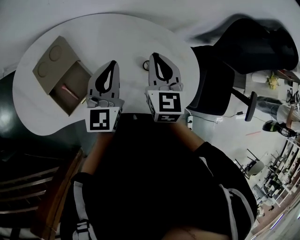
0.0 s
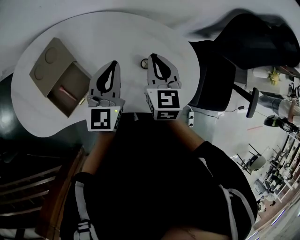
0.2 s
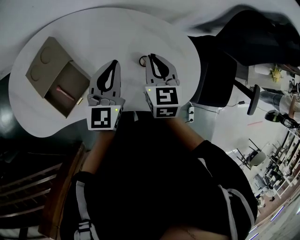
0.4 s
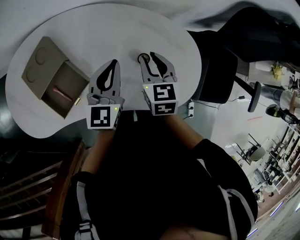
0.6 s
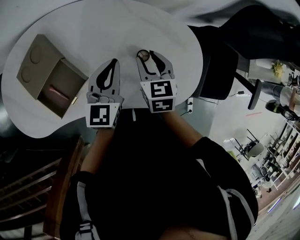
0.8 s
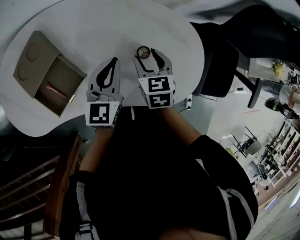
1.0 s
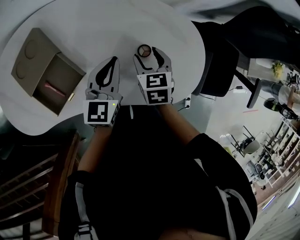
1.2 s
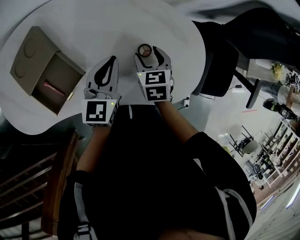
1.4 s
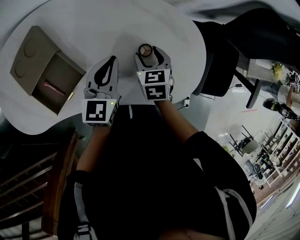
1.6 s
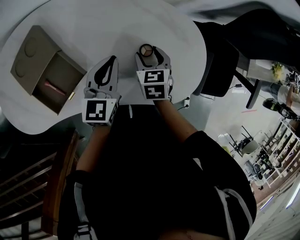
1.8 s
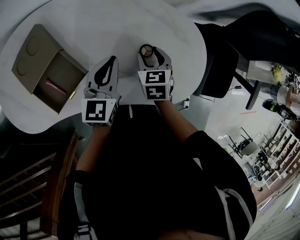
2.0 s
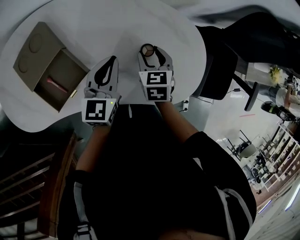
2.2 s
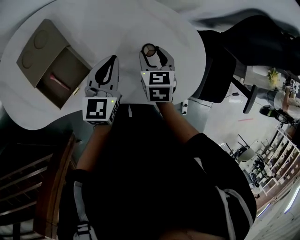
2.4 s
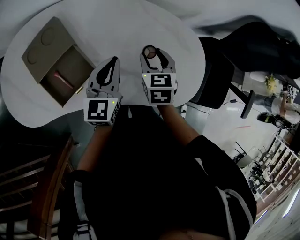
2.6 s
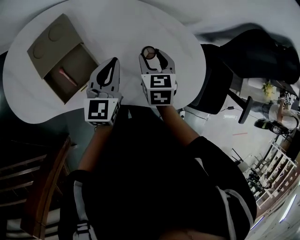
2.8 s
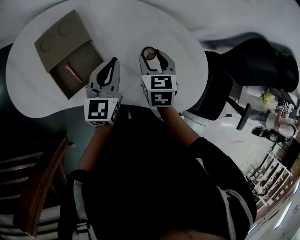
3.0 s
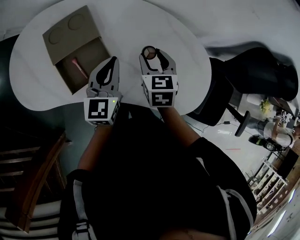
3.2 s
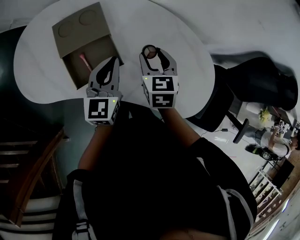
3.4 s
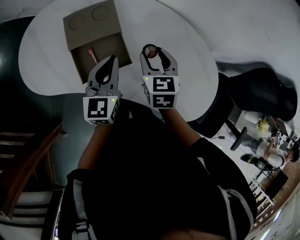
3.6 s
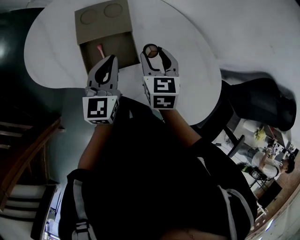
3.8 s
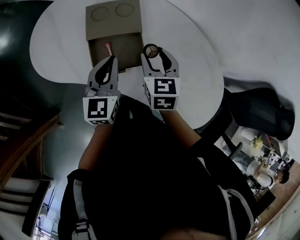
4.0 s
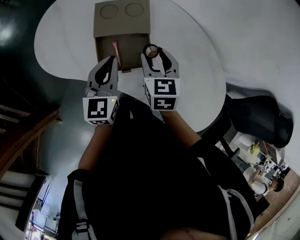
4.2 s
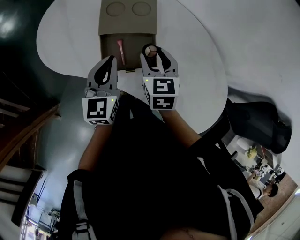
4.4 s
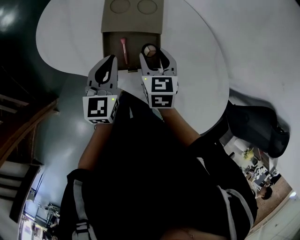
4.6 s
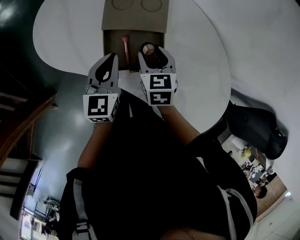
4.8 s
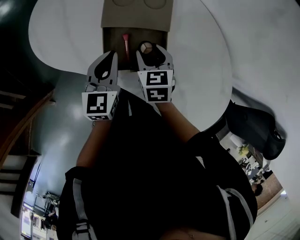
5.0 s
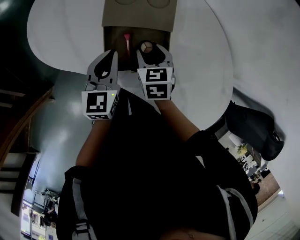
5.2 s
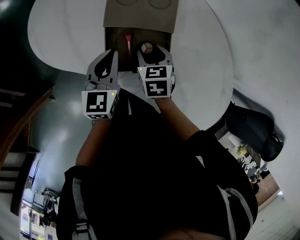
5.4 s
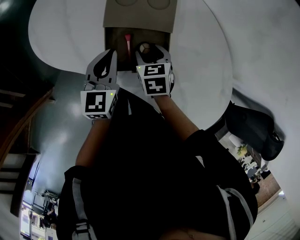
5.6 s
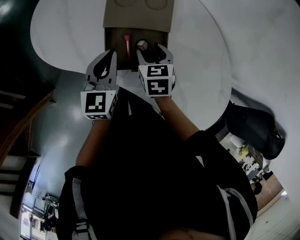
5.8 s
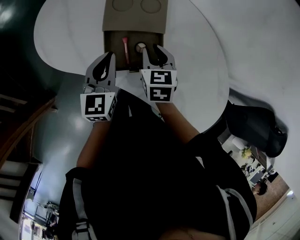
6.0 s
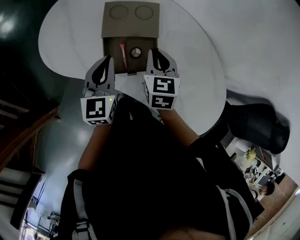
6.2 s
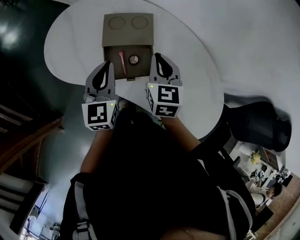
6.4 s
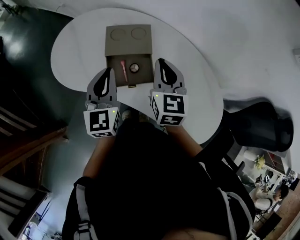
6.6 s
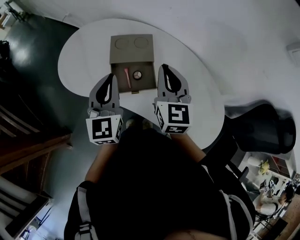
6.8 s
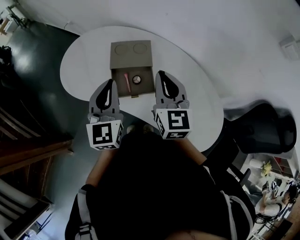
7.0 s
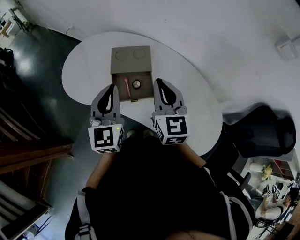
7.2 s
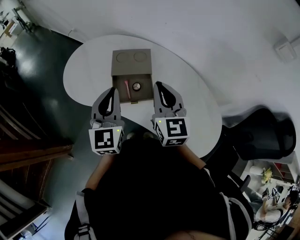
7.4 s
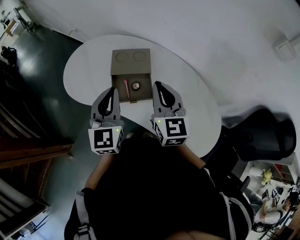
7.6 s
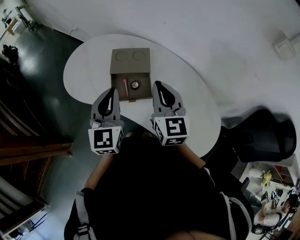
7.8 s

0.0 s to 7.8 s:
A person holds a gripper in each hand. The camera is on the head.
0.0 to 1.6 s: The right gripper moves downward, roughly 20 cm, tilts its fingers approximately 30 degrees downward, and opens. Meanwhile the left gripper heads downward, covering roughly 15 cm.
1.6 to 3.2 s: The left gripper moves to the left and upward, roughly 15 cm, and changes its angle by approximately 20 degrees. Meanwhile the right gripper heads upward and to the left, covering approximately 15 cm.
3.2 to 4.6 s: The left gripper ends up about 20 cm from where it was, and changes its angle by some 30 degrees, while the right gripper shifts by some 20 cm, and rotates roughly 30 degrees.
4.6 to 6.2 s: The left gripper reaches about 5 cm downward, then returns. The right gripper reaches approximately 10 cm downward, then returns, and closes its fingers.
6.2 to 7.8 s: Both grippers move upward and backward, some 20 cm. The right gripper swivels approximately 30 degrees.

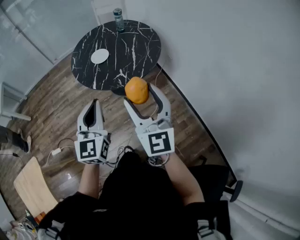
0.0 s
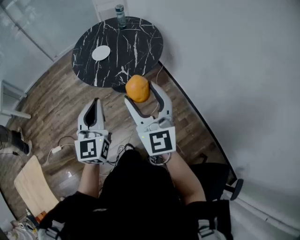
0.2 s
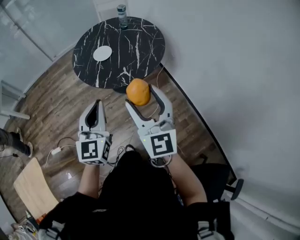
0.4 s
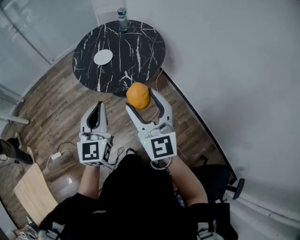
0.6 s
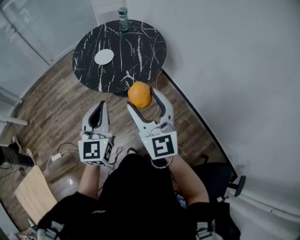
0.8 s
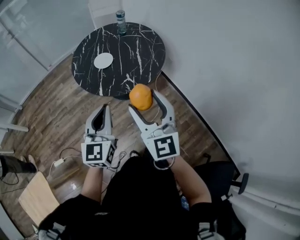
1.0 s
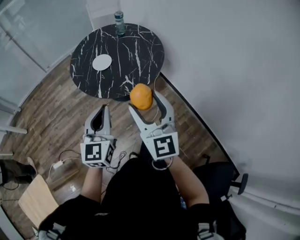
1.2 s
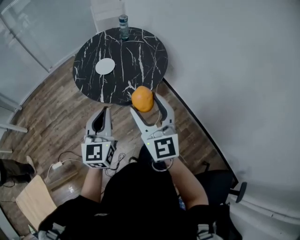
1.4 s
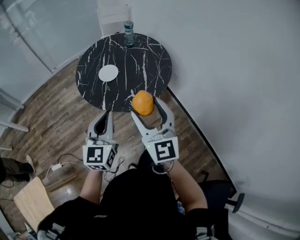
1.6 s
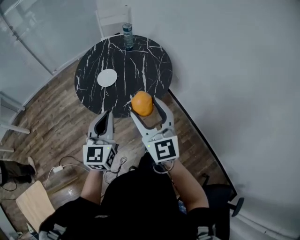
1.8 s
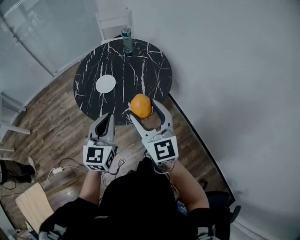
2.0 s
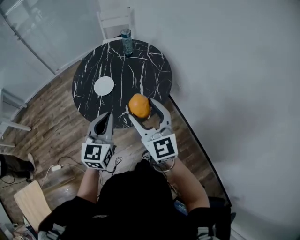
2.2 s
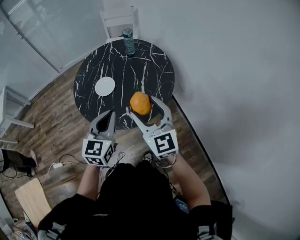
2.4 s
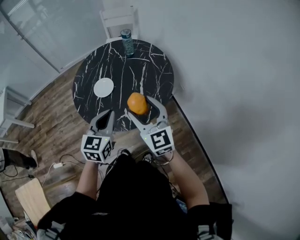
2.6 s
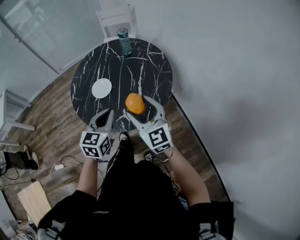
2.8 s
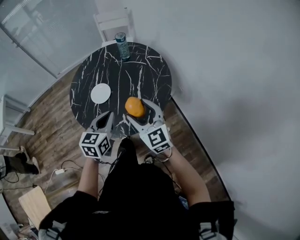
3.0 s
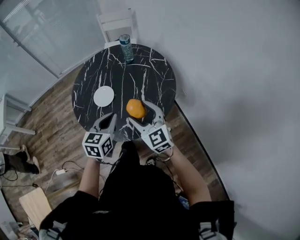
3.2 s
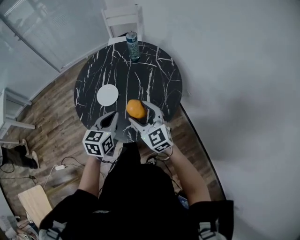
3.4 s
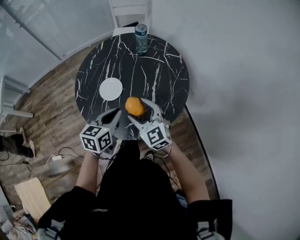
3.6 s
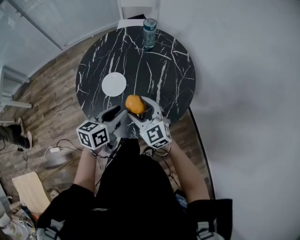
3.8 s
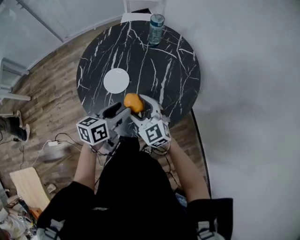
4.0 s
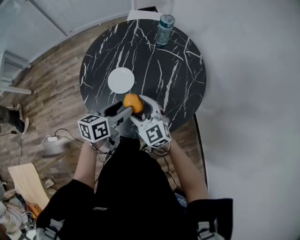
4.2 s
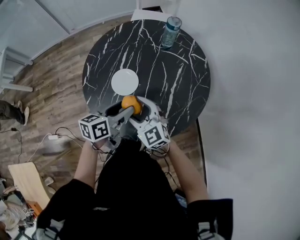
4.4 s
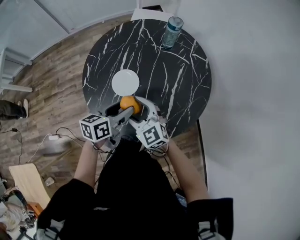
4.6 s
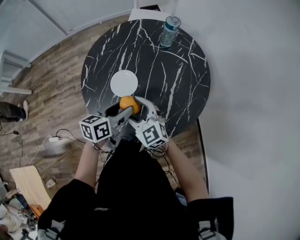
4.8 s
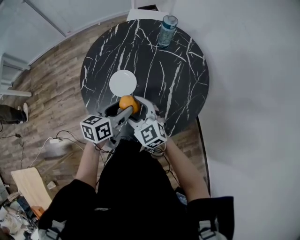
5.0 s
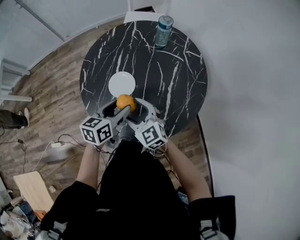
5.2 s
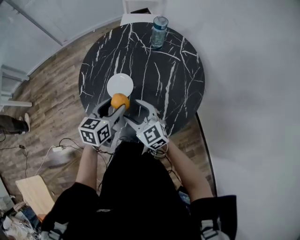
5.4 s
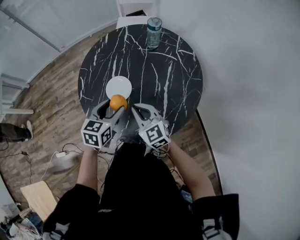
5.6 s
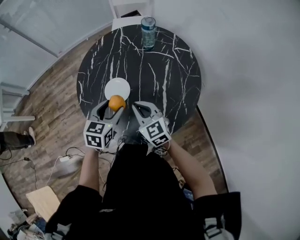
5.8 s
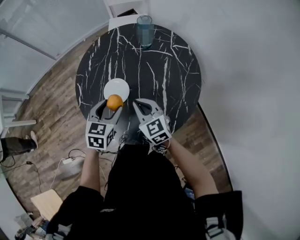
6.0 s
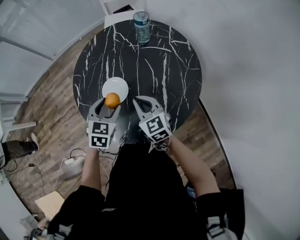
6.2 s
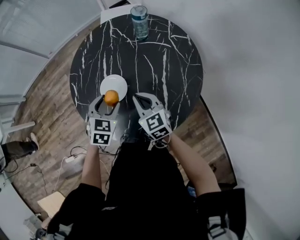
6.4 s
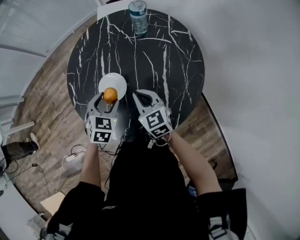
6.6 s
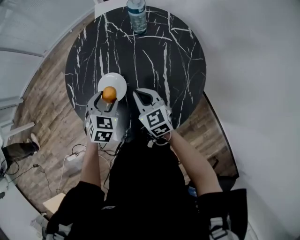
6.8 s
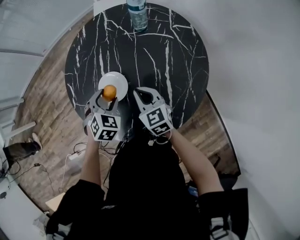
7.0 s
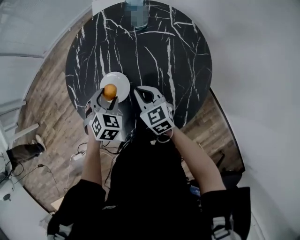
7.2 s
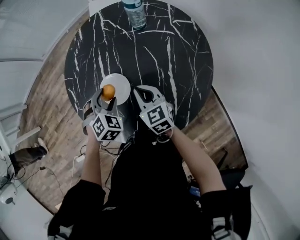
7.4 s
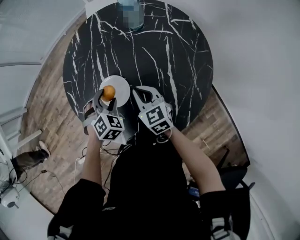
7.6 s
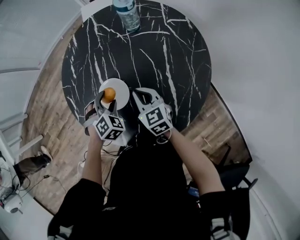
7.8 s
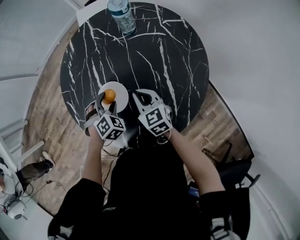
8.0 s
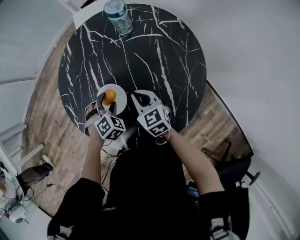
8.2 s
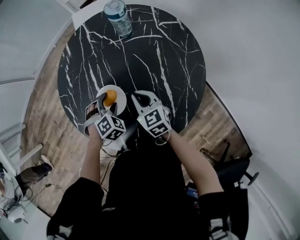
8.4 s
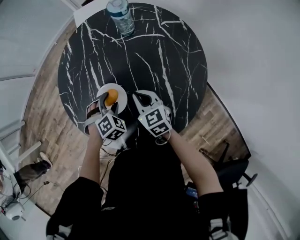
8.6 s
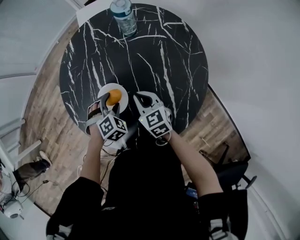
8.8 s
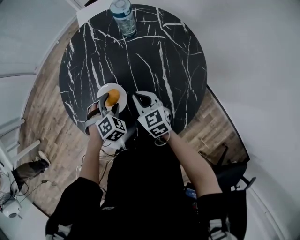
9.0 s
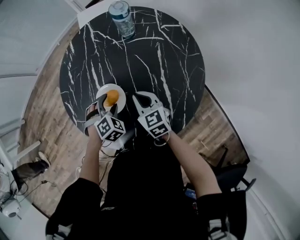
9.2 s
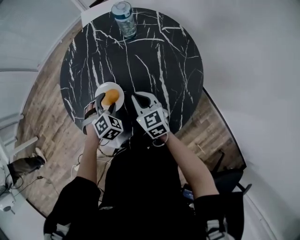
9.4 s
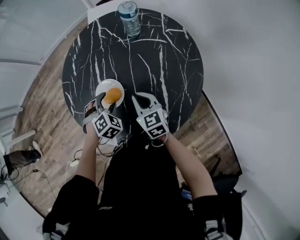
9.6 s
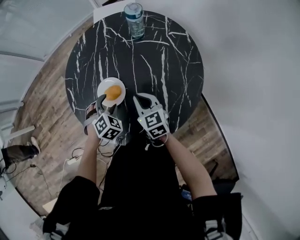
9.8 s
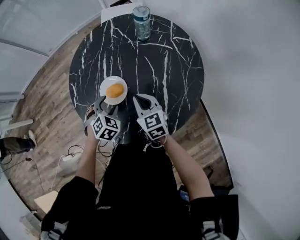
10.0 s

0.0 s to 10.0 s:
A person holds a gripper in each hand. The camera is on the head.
0.0 to 1.4 s: Both grippers travel together forward and to the left, about 10 cm.
1.4 to 2.8 s: The left gripper heads forward and to the right, covering roughly 25 cm. Meanwhile the right gripper goes approximately 25 cm forward, downward and to the right, and changes its angle by roughly 20 degrees.
2.8 to 4.2 s: The right gripper is displaced to the left, downward and forward by roughly 25 cm, and changes its angle by roughly 20 degrees. The left gripper travels forward, downward and to the left by some 20 cm, swivels roughly 40 degrees, and opens up.
4.2 to 5.8 s: The left gripper moves roughly 5 cm, and swivels roughly 40 degrees; the right gripper closes up.
5.8 to 7.2 s: Both grippers move downward and forward, some 10 cm. The left gripper turns by about 40 degrees.
7.2 to 8.6 s: The left gripper shifts about 5 cm downward, and rotates approximately 20 degrees.
8.6 to 10.0 s: The right gripper shifts about 5 cm upward. Meanwhile the left gripper goes some 10 cm backward and upward, and changes its angle by some 20 degrees.

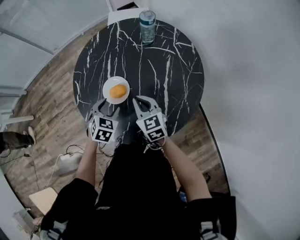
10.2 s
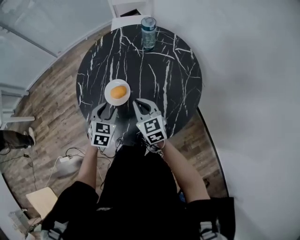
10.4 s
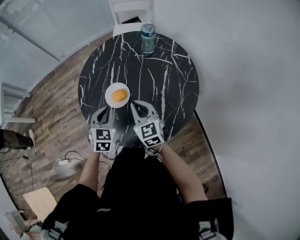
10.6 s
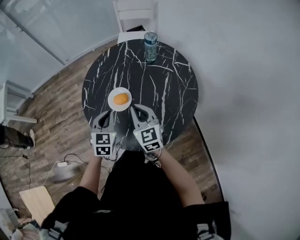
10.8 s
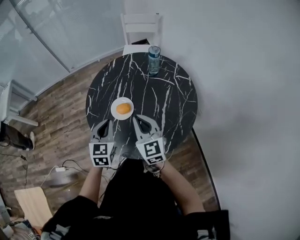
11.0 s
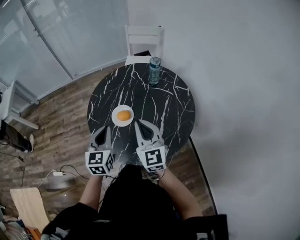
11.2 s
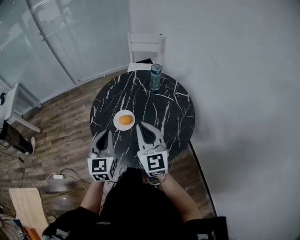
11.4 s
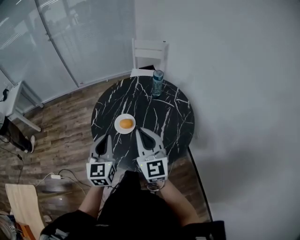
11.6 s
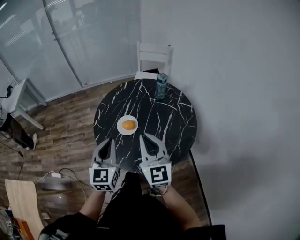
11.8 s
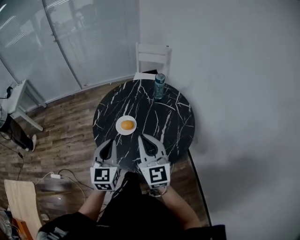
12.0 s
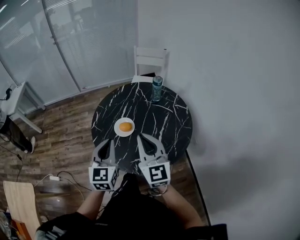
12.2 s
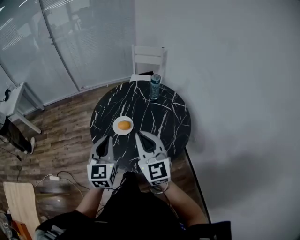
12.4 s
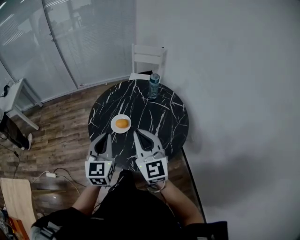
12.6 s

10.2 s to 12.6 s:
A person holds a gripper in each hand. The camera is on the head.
10.2 to 11.4 s: The right gripper travels upward by roughly 25 cm, and rotates roughly 30 degrees, while the left gripper travels upward and backward by roughly 25 cm, tilts its fingers about 40 degrees upward, and closes its fingers.
11.4 to 12.6 s: Both grippers move backward, roughly 5 cm.

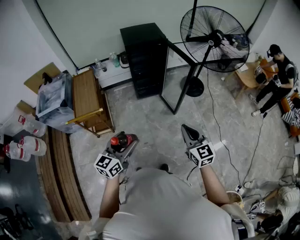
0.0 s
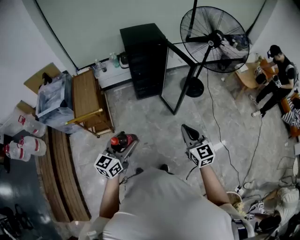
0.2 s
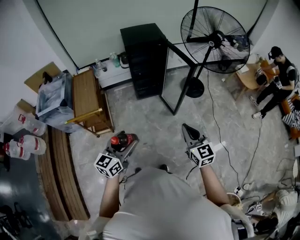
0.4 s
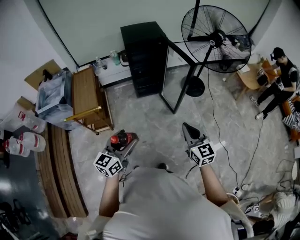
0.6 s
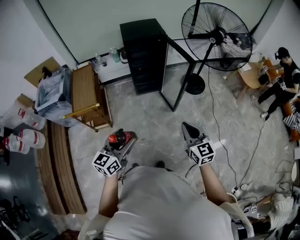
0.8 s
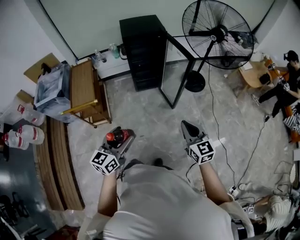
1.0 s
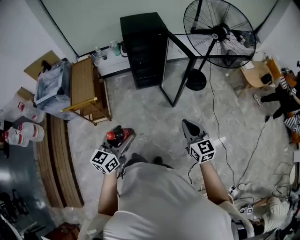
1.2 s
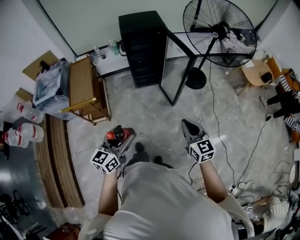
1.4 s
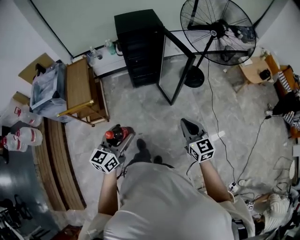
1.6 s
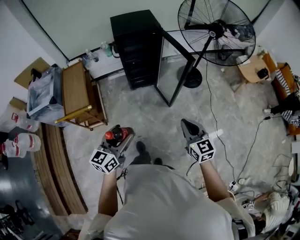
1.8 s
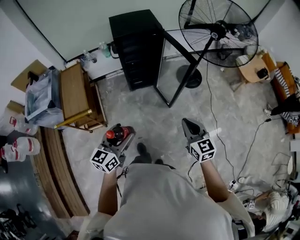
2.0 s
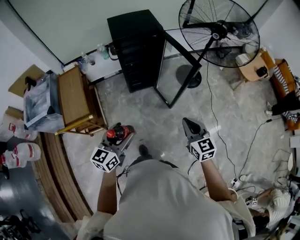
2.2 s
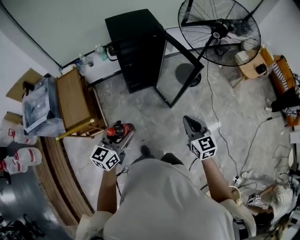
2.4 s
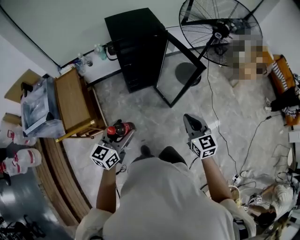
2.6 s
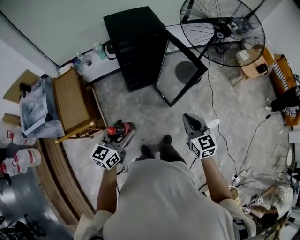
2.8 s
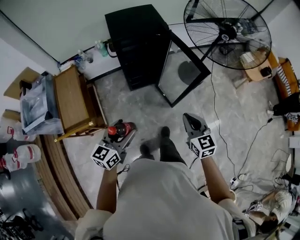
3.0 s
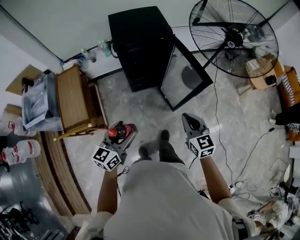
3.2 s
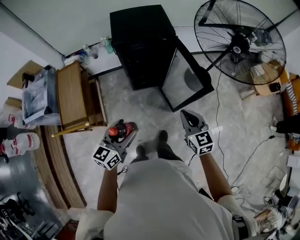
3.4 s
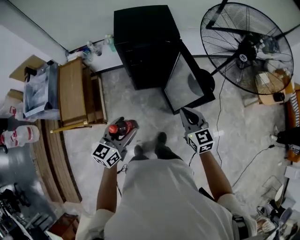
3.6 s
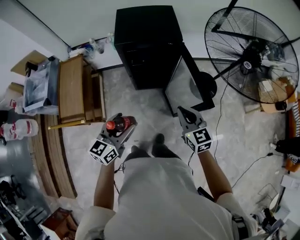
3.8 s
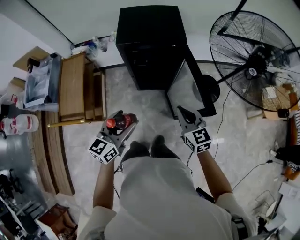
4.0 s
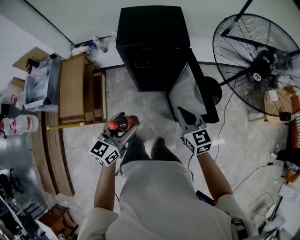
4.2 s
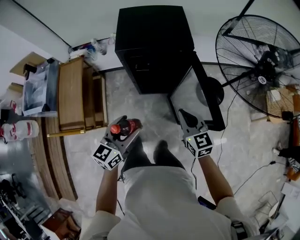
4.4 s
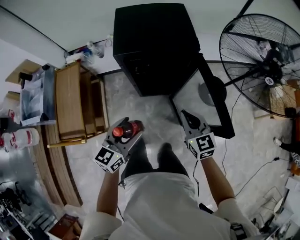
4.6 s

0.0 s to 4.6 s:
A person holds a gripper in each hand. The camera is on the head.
0.0 to 1.6 s: The right gripper goes about 10 cm to the right and forward, while the left gripper travels to the right by approximately 5 cm.
1.6 to 3.0 s: Both grippers travel together forward, approximately 20 cm.
3.0 to 4.6 s: The two grippers go some 30 cm forward.
